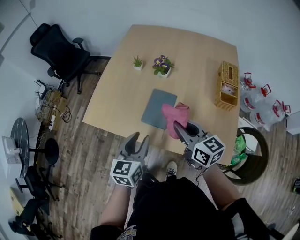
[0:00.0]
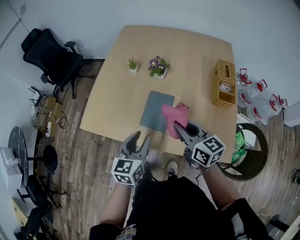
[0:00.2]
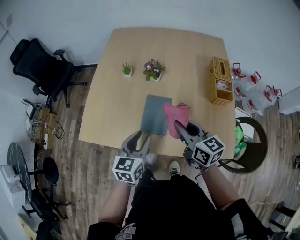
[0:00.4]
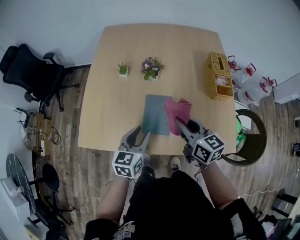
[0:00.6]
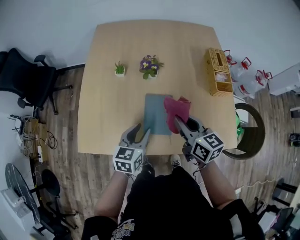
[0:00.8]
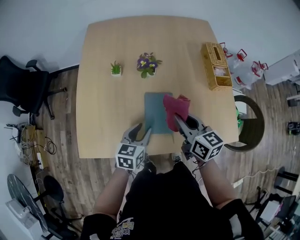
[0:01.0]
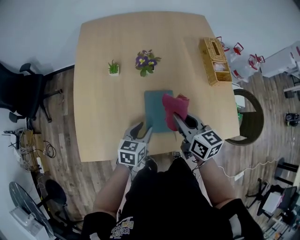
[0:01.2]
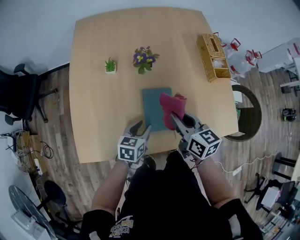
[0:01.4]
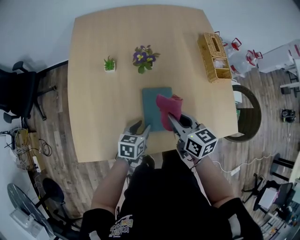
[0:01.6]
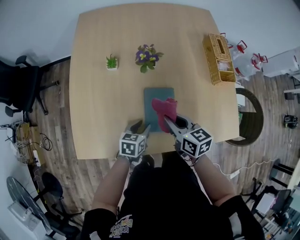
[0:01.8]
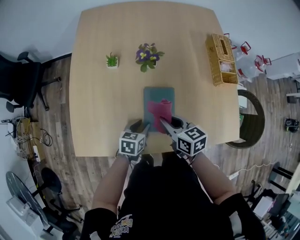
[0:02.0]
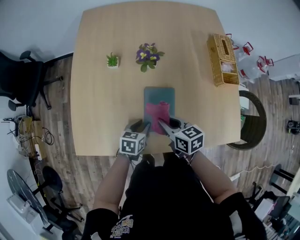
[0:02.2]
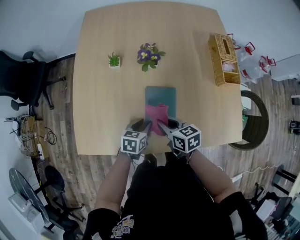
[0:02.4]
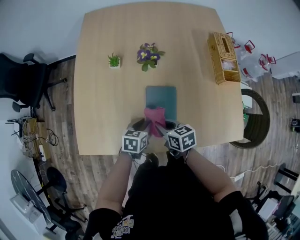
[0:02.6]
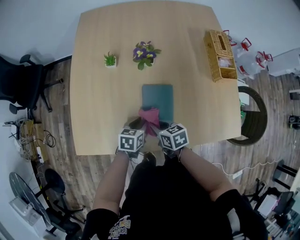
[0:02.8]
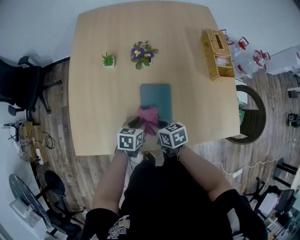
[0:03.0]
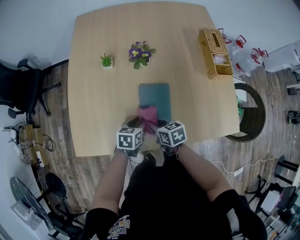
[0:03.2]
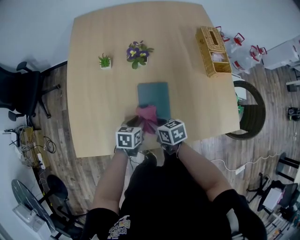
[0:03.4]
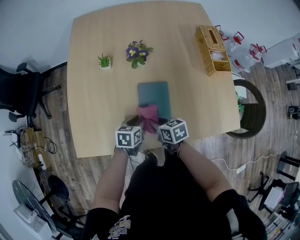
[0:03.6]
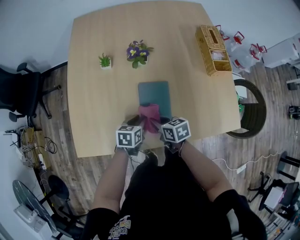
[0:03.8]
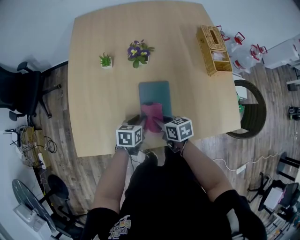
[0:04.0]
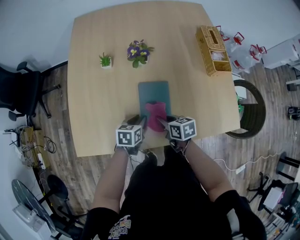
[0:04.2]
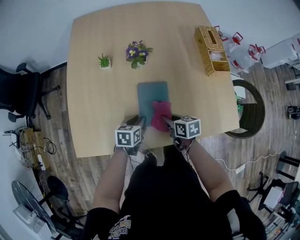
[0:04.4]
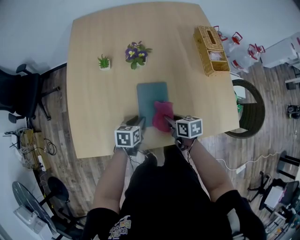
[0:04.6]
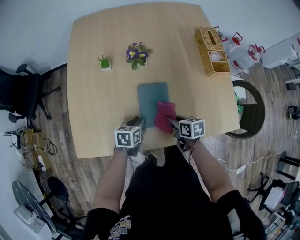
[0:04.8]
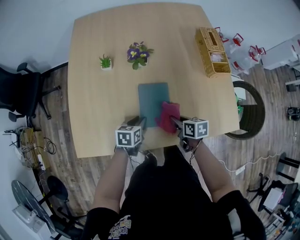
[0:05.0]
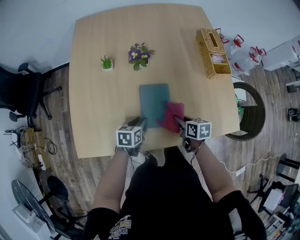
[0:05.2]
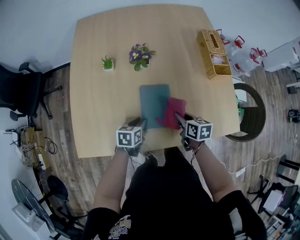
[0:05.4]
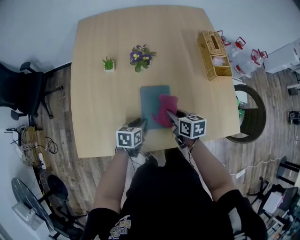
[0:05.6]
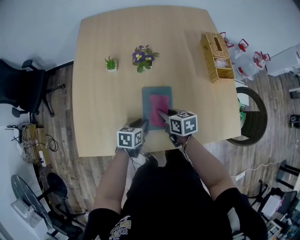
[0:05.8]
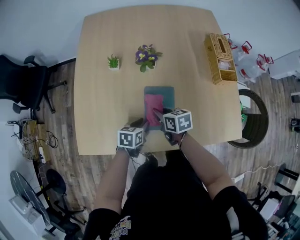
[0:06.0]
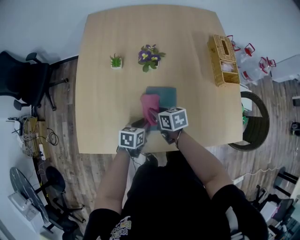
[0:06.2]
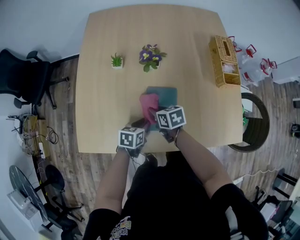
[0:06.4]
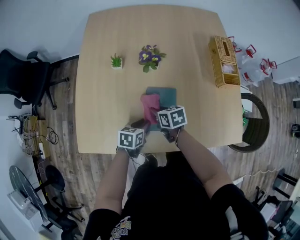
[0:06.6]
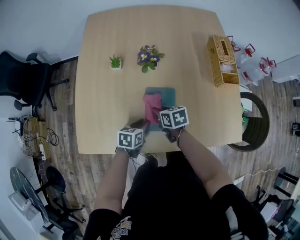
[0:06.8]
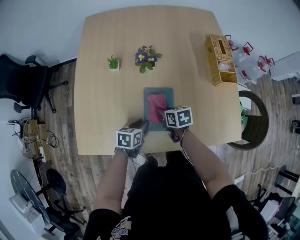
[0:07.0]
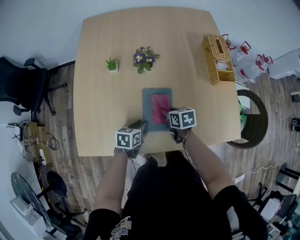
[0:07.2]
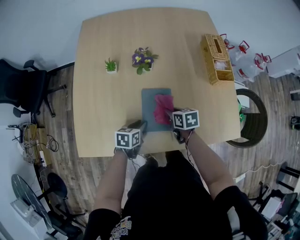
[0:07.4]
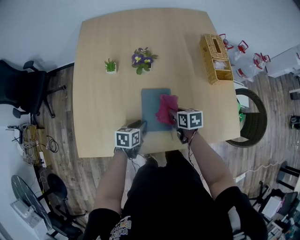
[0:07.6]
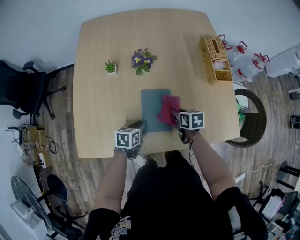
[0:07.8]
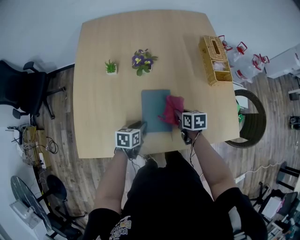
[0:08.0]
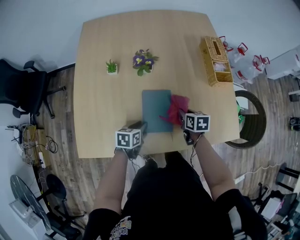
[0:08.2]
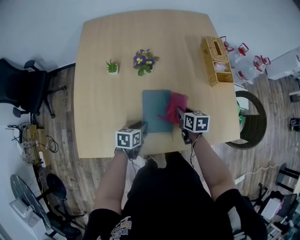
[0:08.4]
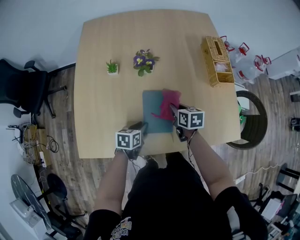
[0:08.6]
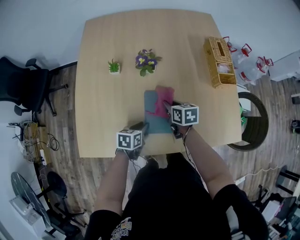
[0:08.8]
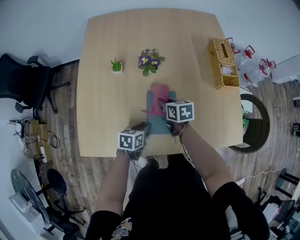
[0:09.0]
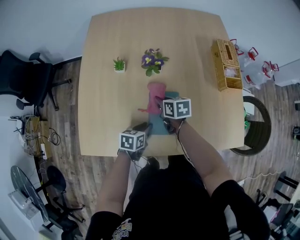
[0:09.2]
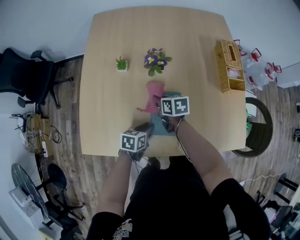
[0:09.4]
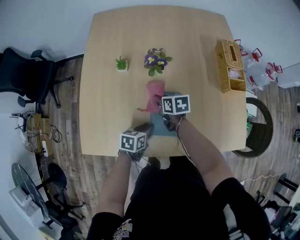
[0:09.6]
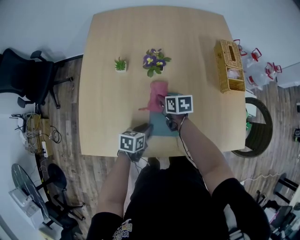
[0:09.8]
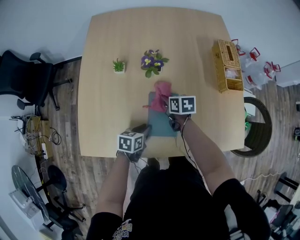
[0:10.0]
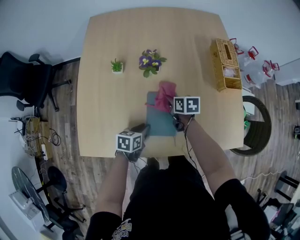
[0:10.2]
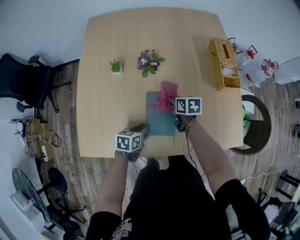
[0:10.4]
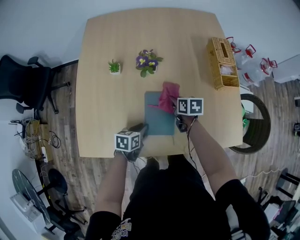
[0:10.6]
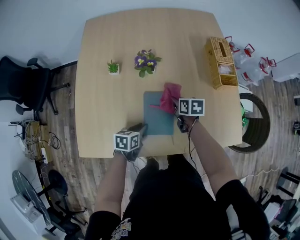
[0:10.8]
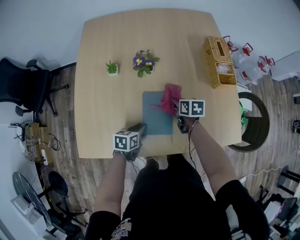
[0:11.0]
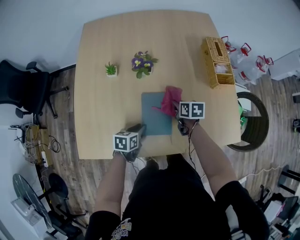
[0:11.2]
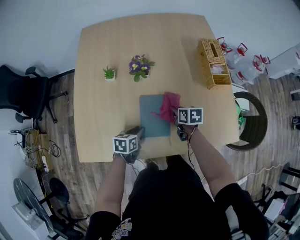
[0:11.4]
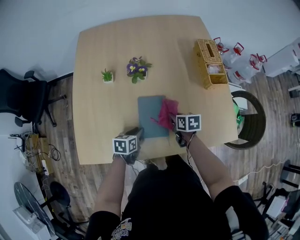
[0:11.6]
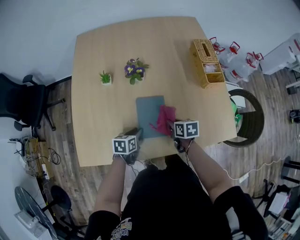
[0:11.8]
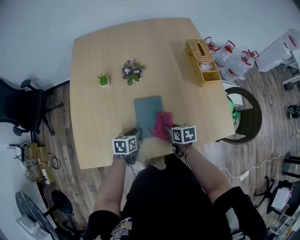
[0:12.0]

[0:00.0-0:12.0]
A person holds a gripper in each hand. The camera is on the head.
0.0 to 1.6 s: The left gripper goes roughly 20 cm downward, and rotates roughly 40 degrees. The right gripper changes place by about 15 cm, and rotates some 30 degrees.
1.6 to 3.0 s: The right gripper moves downward, about 15 cm, and changes its angle by approximately 20 degrees.
3.0 to 4.4 s: The right gripper moves to the right, some 10 cm.
4.4 to 6.0 s: The right gripper moves to the left and forward, about 10 cm.
6.0 to 7.6 s: The right gripper is displaced to the right by about 10 cm.
7.6 to 9.0 s: The right gripper shifts some 10 cm to the left and forward.
9.0 to 10.4 s: The right gripper heads to the right, covering some 5 cm.
10.4 to 12.0 s: The right gripper moves backward, about 15 cm.

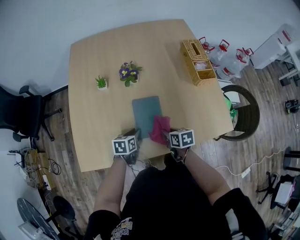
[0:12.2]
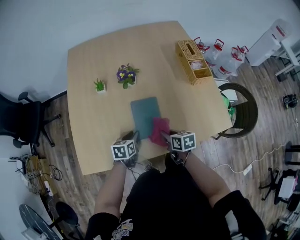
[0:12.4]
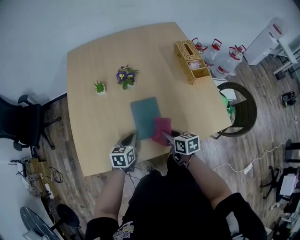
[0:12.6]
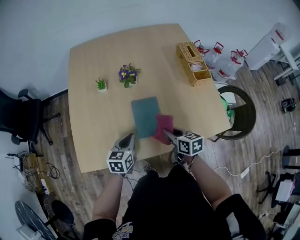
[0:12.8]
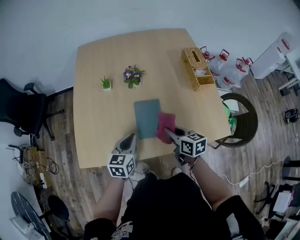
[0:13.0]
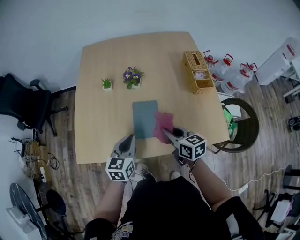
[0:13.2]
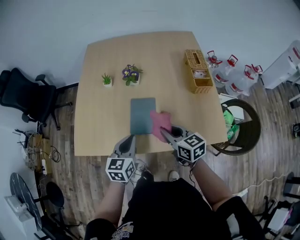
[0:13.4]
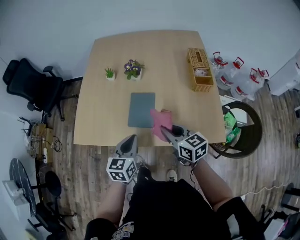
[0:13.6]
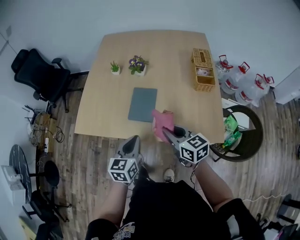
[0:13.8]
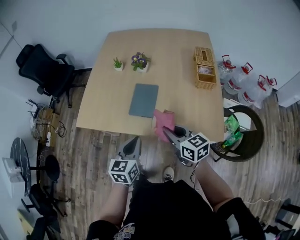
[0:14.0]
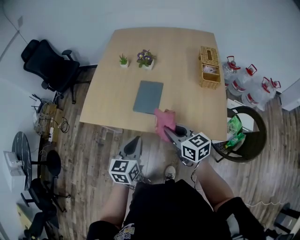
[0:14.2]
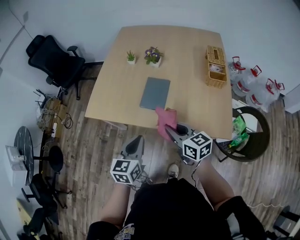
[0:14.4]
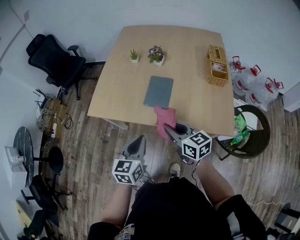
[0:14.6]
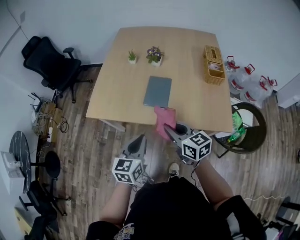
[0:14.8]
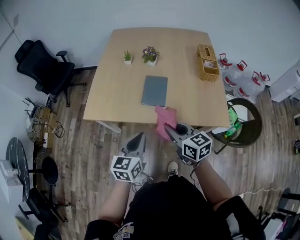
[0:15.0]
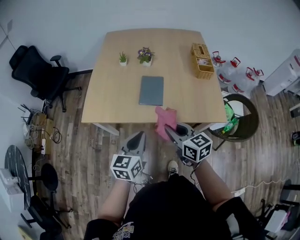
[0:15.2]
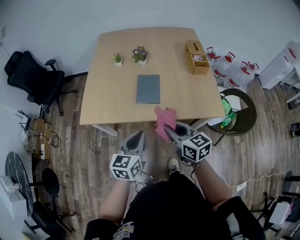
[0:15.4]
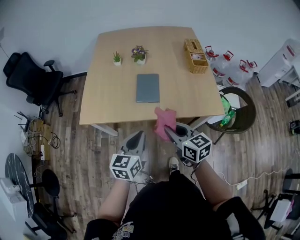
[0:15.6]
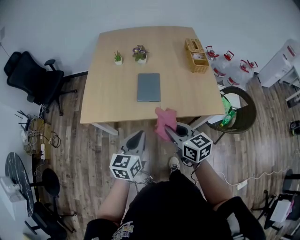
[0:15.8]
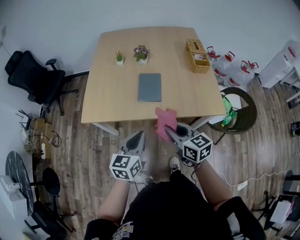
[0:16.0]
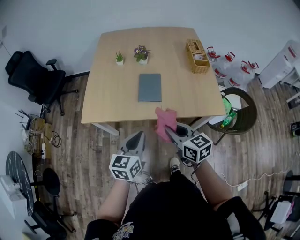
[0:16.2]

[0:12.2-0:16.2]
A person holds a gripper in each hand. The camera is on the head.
12.2 to 13.6 s: The left gripper is displaced upward, backward and to the right by roughly 25 cm, swivels approximately 30 degrees, and closes its fingers, while the right gripper is displaced upward by roughly 20 cm, and swivels roughly 40 degrees.
13.6 to 14.8 s: The grippers both shift backward and to the left by about 15 cm.
14.8 to 16.2 s: The right gripper heads backward, covering some 5 cm.

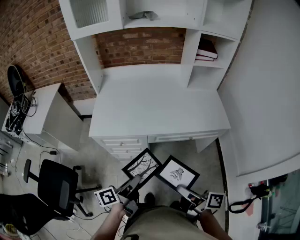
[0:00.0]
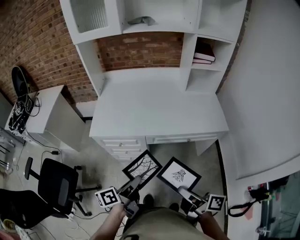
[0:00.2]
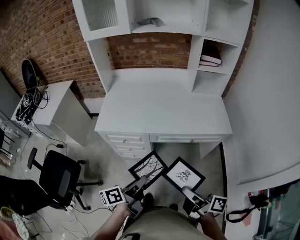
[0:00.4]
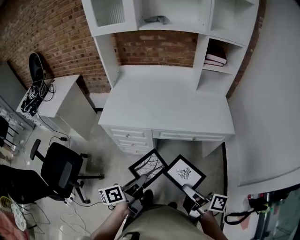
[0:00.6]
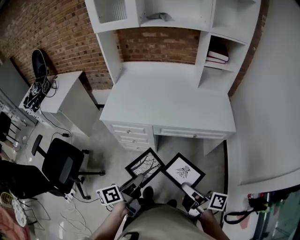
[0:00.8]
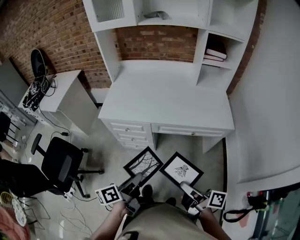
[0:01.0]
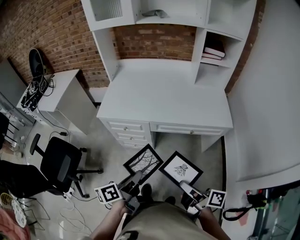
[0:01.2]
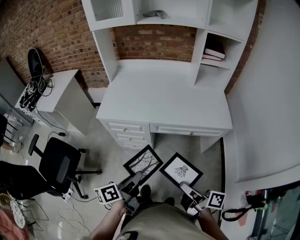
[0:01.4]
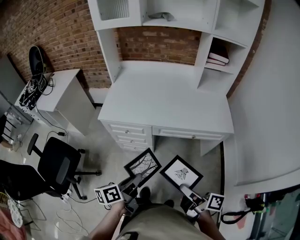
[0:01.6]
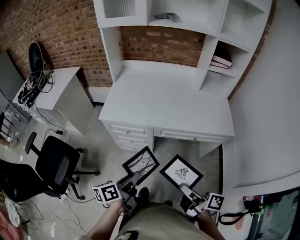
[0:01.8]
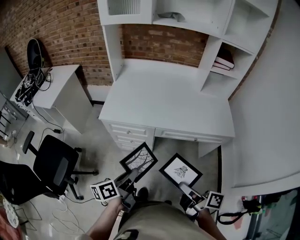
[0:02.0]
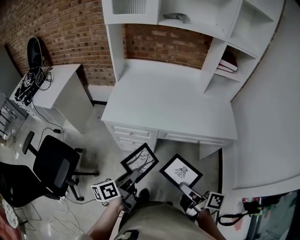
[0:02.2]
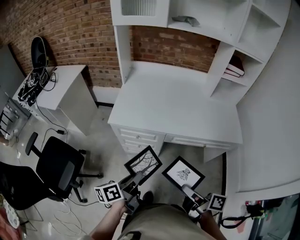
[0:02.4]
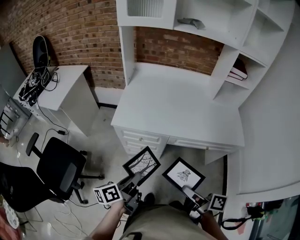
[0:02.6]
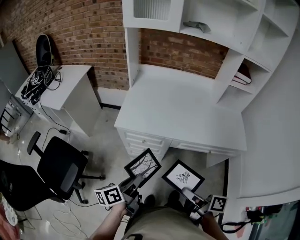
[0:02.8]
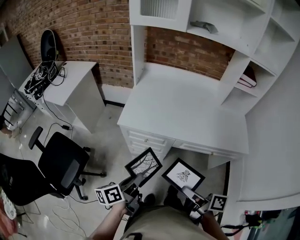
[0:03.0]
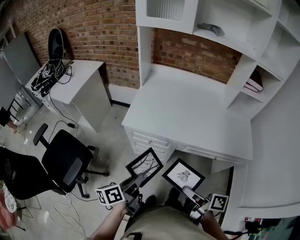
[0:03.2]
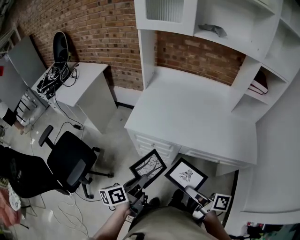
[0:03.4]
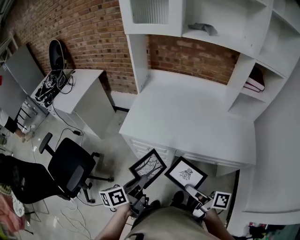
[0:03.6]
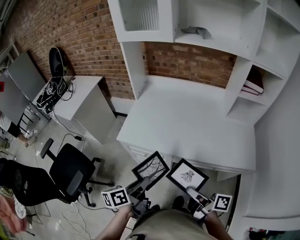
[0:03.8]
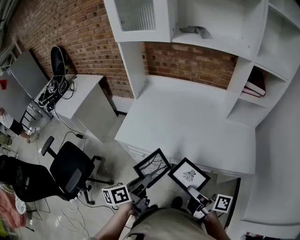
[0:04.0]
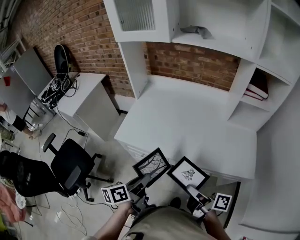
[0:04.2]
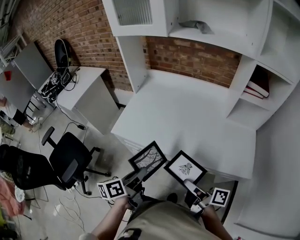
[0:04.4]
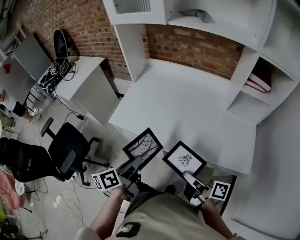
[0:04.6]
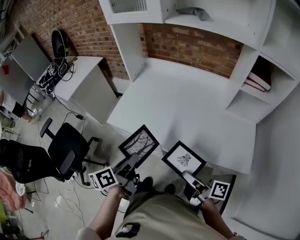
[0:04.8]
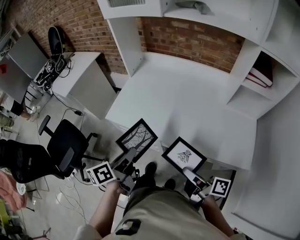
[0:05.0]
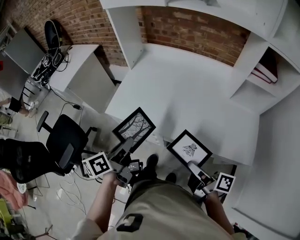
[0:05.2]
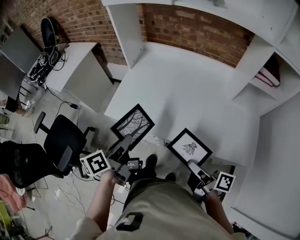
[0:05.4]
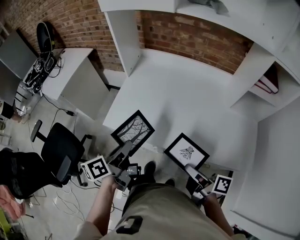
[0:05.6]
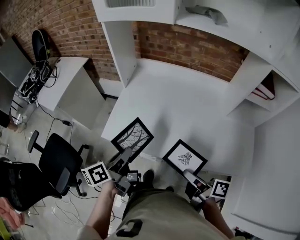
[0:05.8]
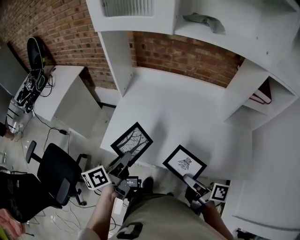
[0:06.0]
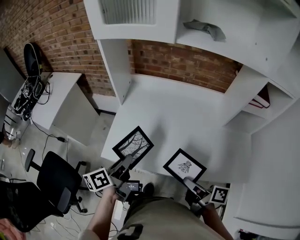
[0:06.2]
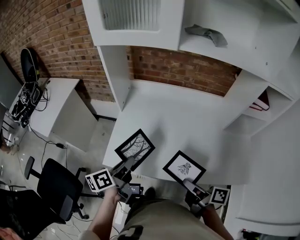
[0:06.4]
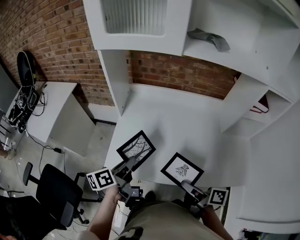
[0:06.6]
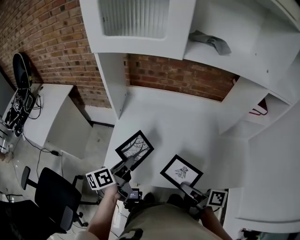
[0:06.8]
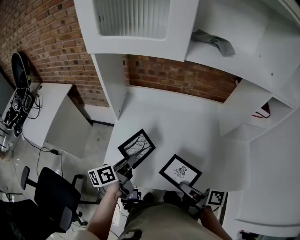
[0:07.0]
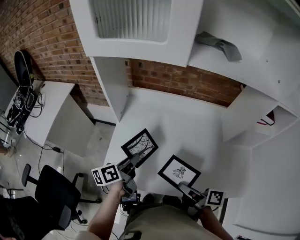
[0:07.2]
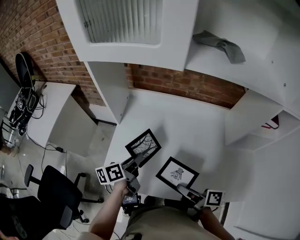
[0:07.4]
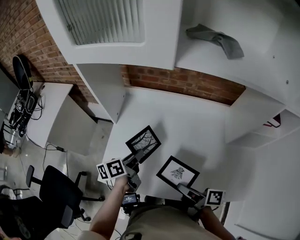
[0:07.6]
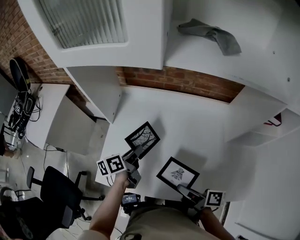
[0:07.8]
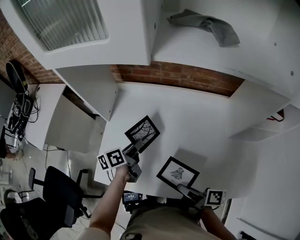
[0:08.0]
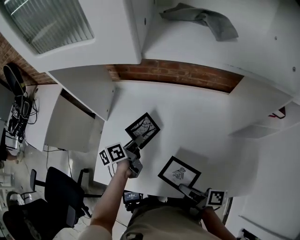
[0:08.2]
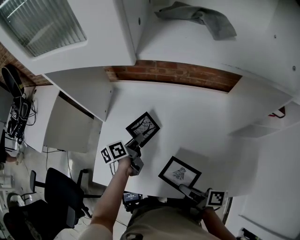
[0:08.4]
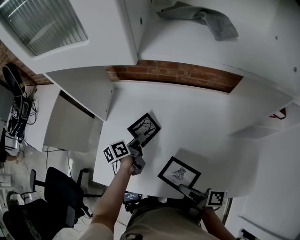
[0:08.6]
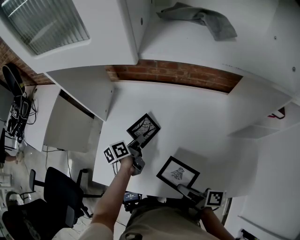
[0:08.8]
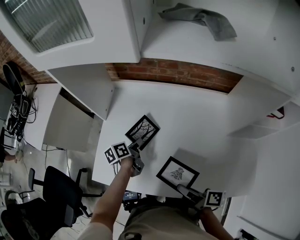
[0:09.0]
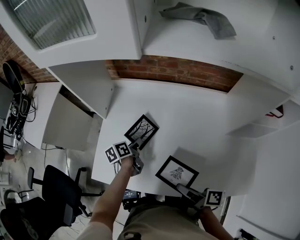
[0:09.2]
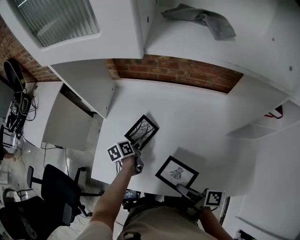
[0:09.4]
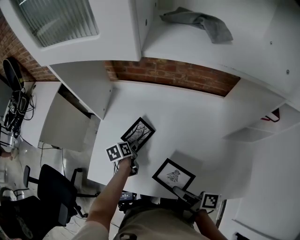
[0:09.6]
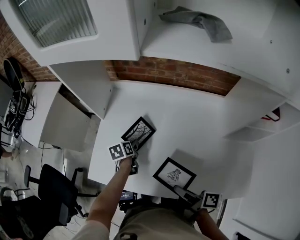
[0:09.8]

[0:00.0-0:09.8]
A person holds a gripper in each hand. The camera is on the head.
0.0 to 1.4 s: The left gripper moves about 10 cm.
1.4 to 2.8 s: The left gripper changes place by approximately 15 cm.
2.8 to 4.2 s: The left gripper moves roughly 20 cm.
4.2 to 5.6 s: The left gripper ends up some 15 cm from where it was.
5.6 to 7.0 s: The left gripper shifts by approximately 20 cm.
7.0 to 8.4 s: The left gripper changes place by approximately 20 cm.
8.4 to 9.8 s: The left gripper shifts roughly 10 cm downward, changes its angle by about 30 degrees, and opens its fingers.
